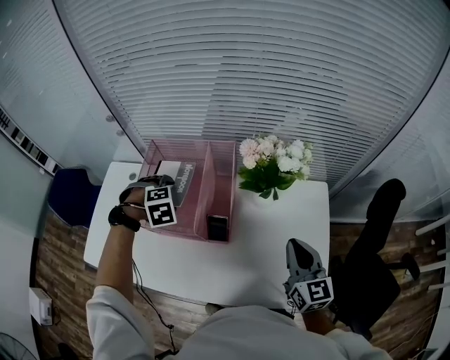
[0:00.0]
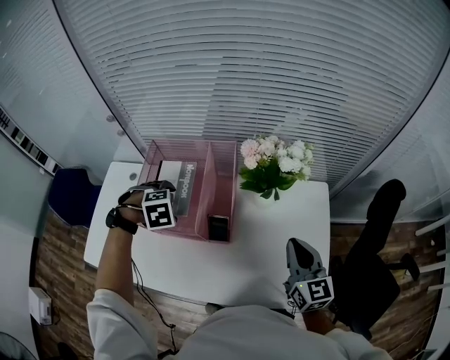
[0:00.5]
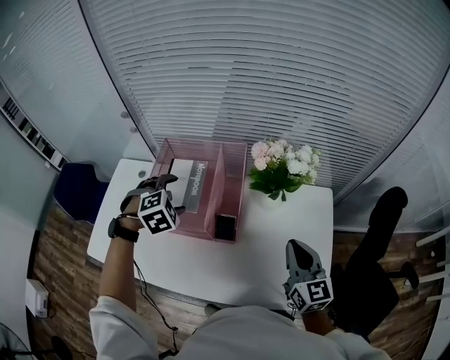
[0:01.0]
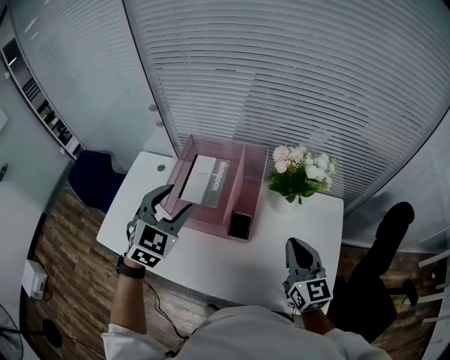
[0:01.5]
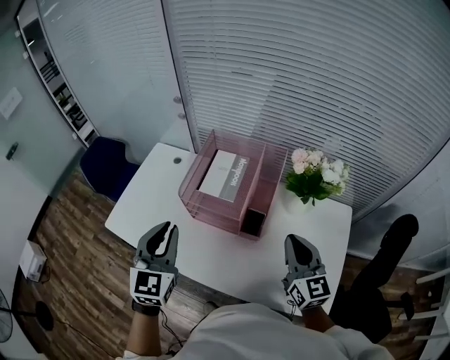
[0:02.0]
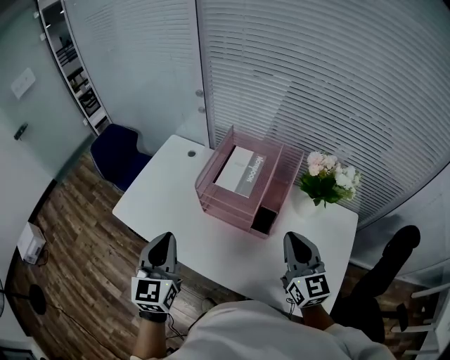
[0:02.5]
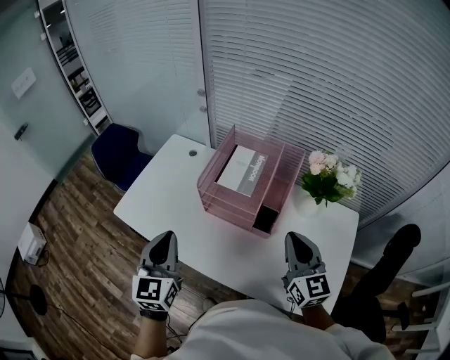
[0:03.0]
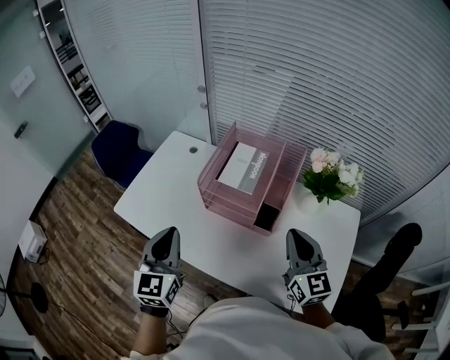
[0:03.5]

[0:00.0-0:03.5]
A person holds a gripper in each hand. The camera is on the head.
0:00.0 to 0:02.0: The left gripper shifts by some 30 cm, angles its fingers upward, by approximately 60 degrees, and closes its fingers. Meanwhile the right gripper changes place by approximately 15 cm.
0:02.0 to 0:03.5: The two grippers go roughly 5 cm to the left.

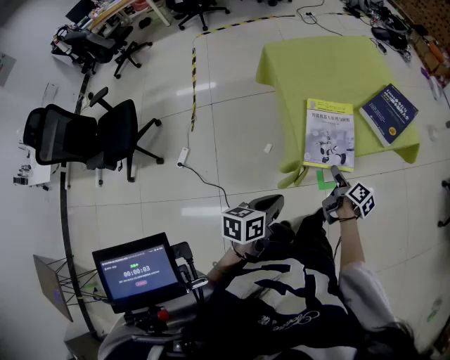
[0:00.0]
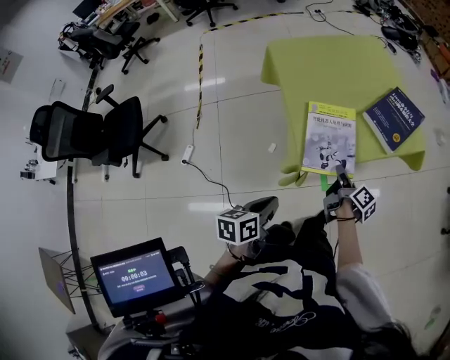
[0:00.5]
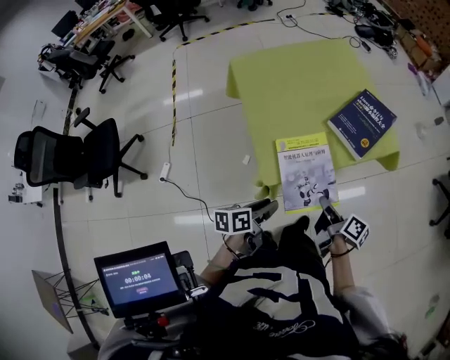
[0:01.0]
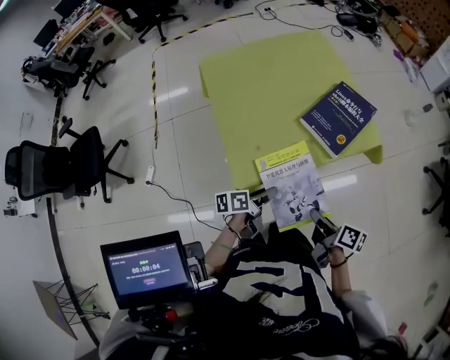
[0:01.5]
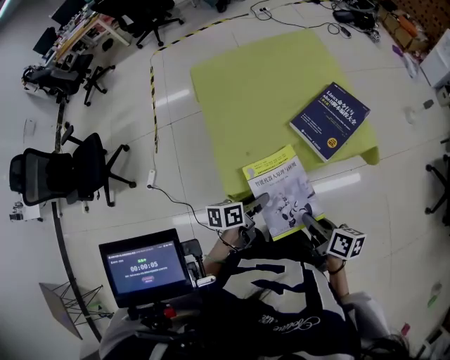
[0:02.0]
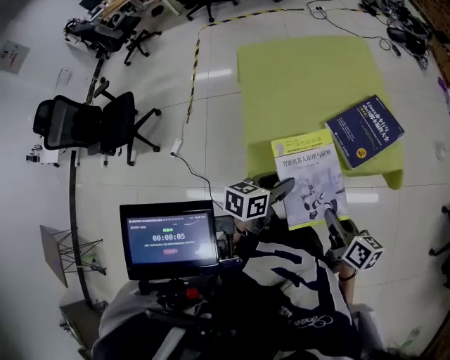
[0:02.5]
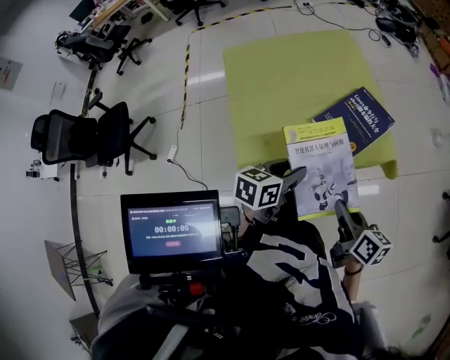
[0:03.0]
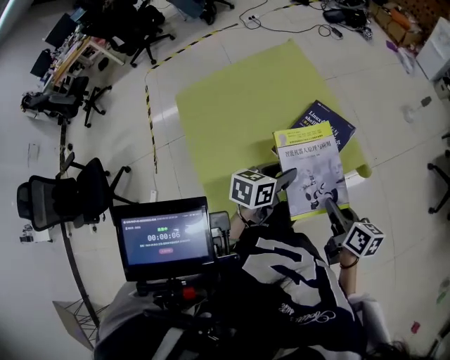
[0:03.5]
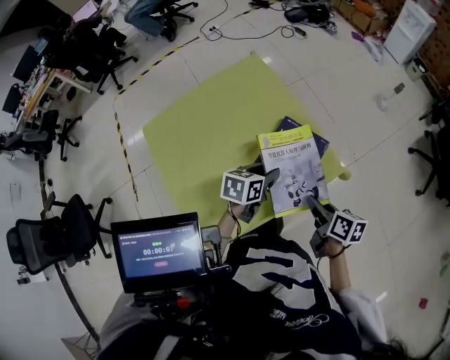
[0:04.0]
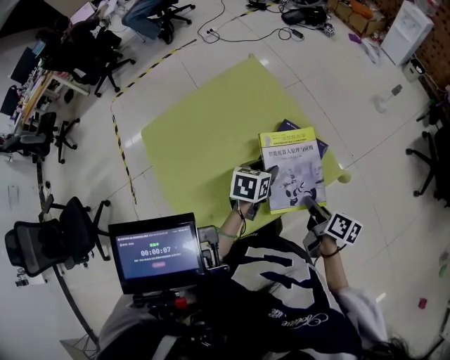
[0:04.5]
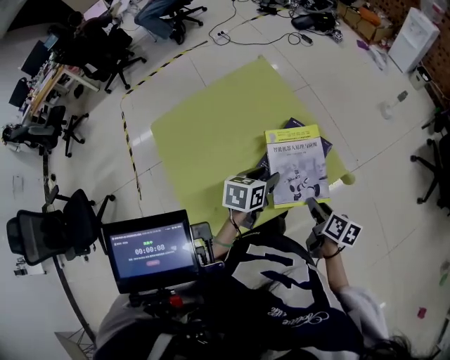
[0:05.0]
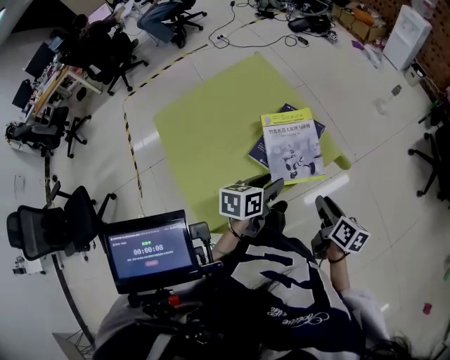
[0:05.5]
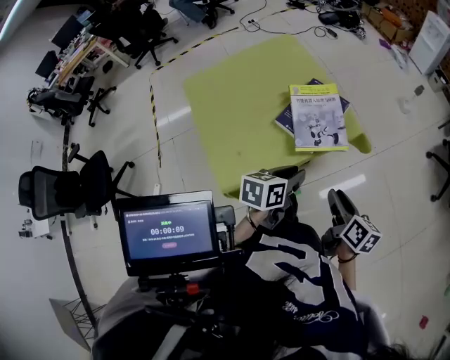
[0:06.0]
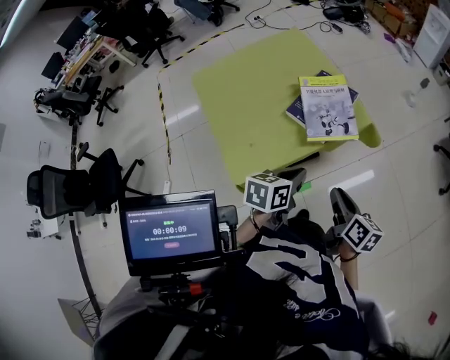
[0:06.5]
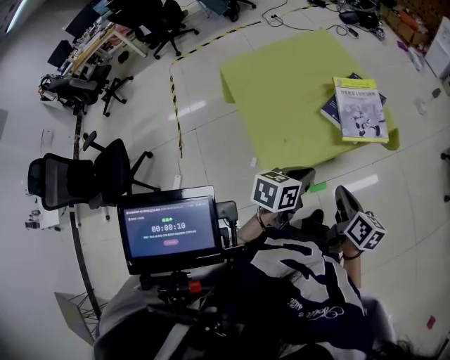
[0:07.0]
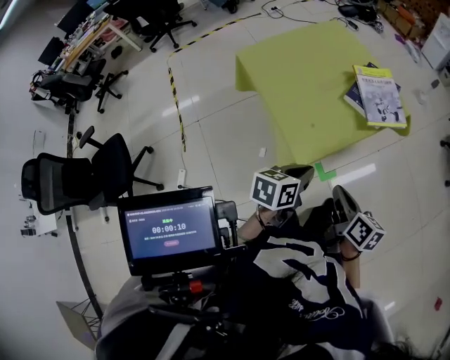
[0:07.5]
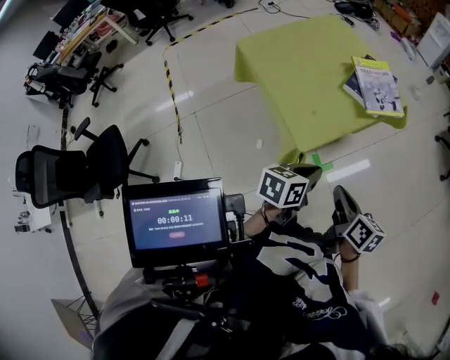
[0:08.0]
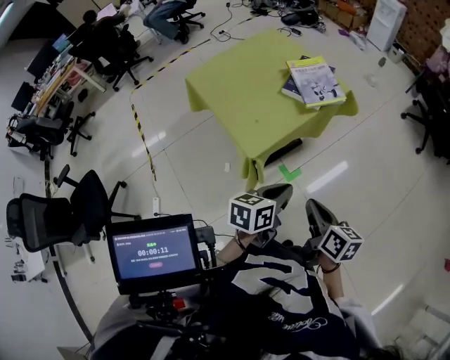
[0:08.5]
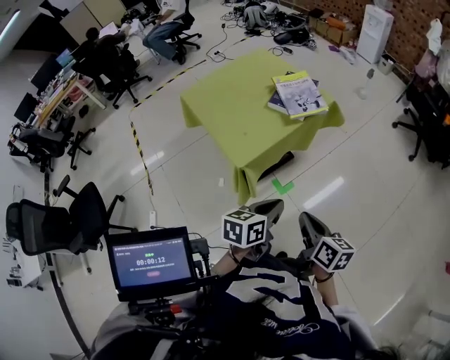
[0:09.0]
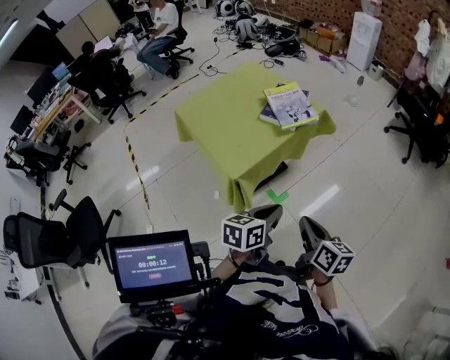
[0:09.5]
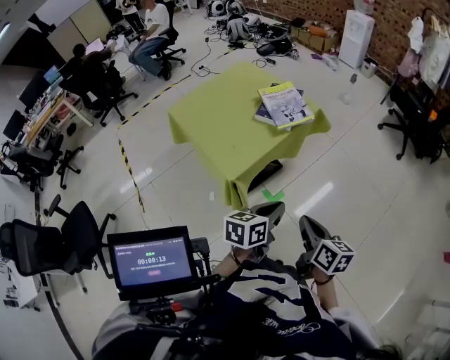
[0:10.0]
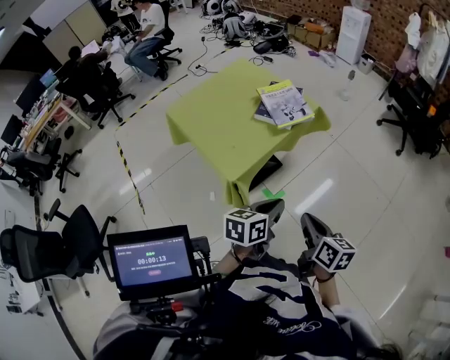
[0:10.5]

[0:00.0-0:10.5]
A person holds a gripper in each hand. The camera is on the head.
0:00.0 to 0:02.0: The left gripper heads to the right, forward and downward, covering approximately 20 cm, and opens its fingers; the right gripper moves to the right and upward, some 15 cm, rotates roughly 30 degrees, and closes its fingers.
0:02.0 to 0:04.0: The two grippers go roughly 25 cm forward and to the right. The right gripper turns by about 20 degrees; the left gripper rotates some 40 degrees.
0:04.0 to 0:06.5: The grippers both shift backward by roughly 20 cm. The left gripper closes its fingers.
0:06.5 to 0:08.5: The left gripper shifts roughly 20 cm backward, while the right gripper goes roughly 25 cm backward and to the left.
0:08.5 to 0:10.5: The right gripper goes roughly 5 cm to the right, while the left gripper moves approximately 5 cm.

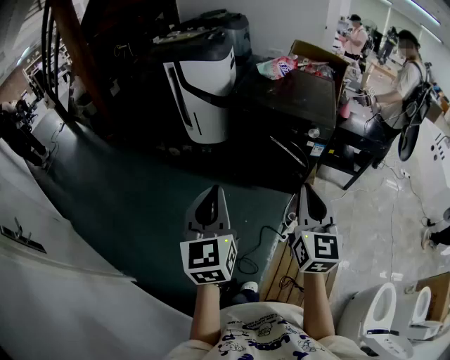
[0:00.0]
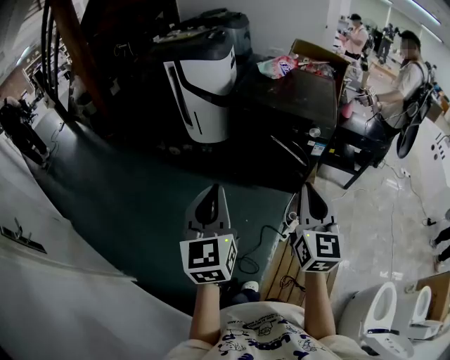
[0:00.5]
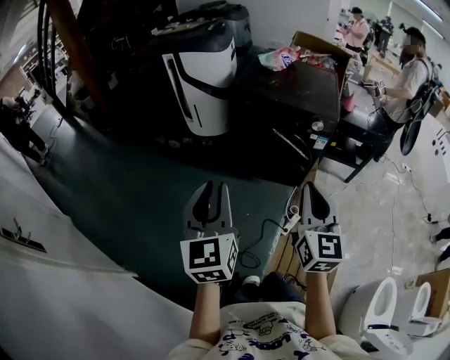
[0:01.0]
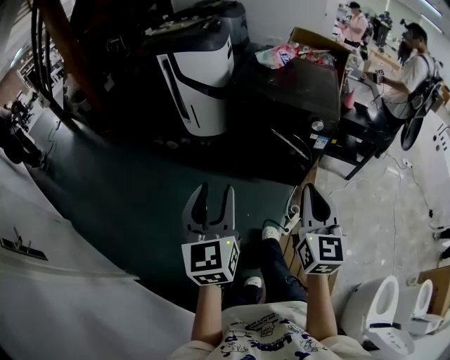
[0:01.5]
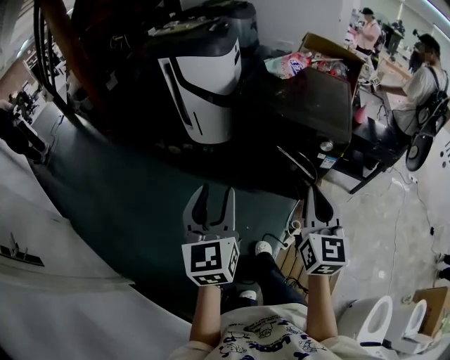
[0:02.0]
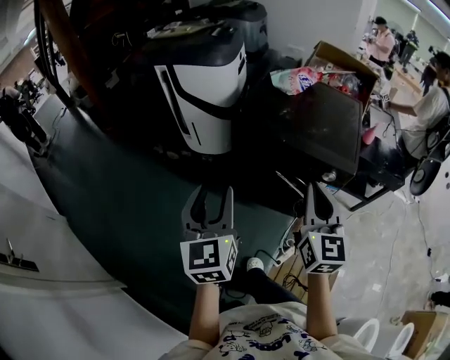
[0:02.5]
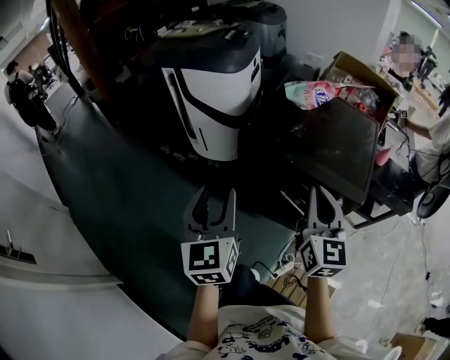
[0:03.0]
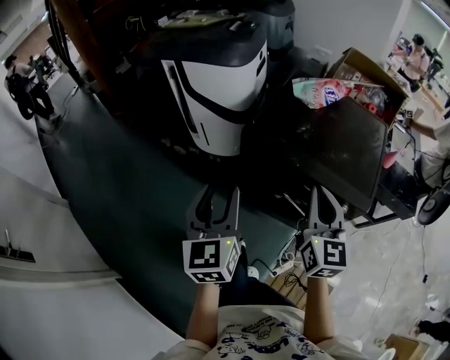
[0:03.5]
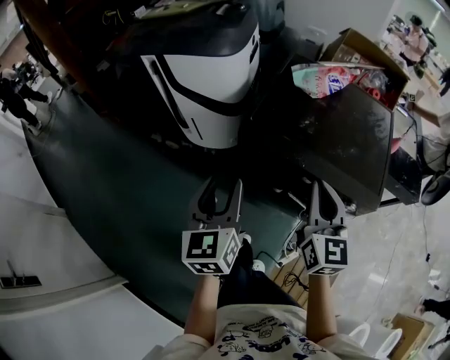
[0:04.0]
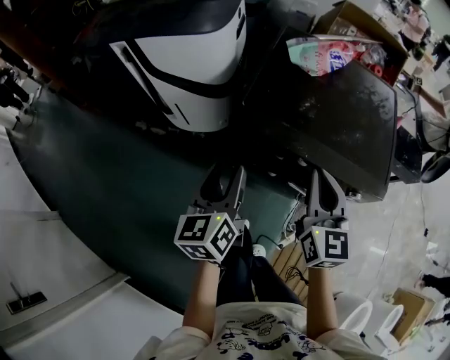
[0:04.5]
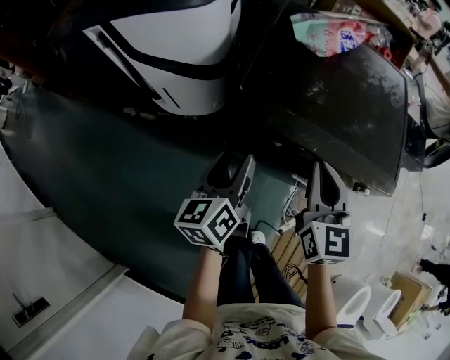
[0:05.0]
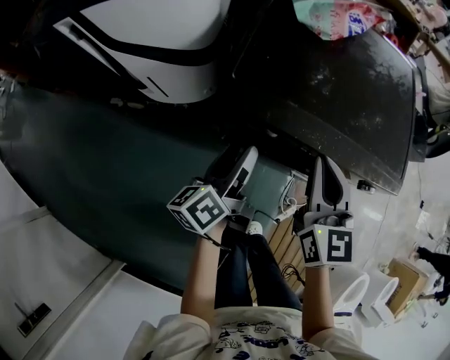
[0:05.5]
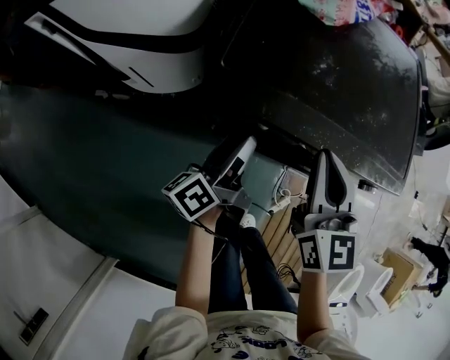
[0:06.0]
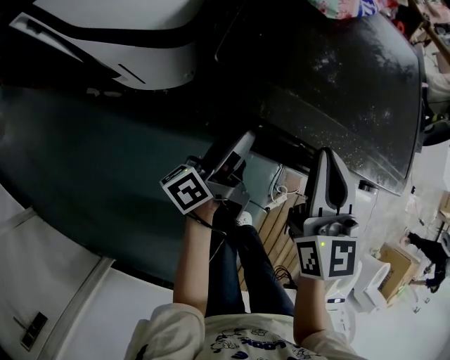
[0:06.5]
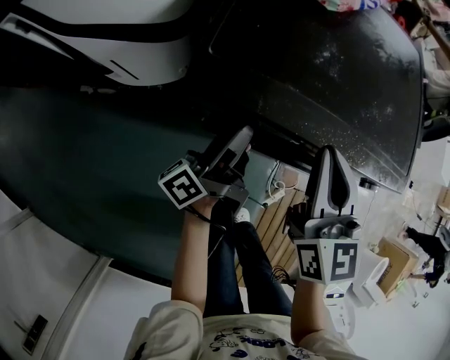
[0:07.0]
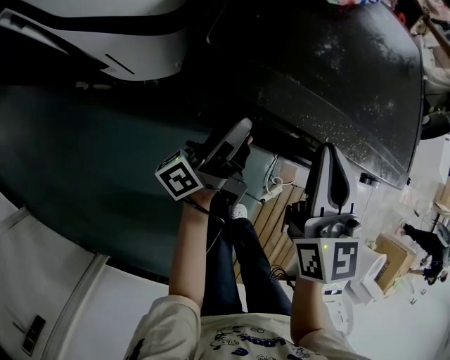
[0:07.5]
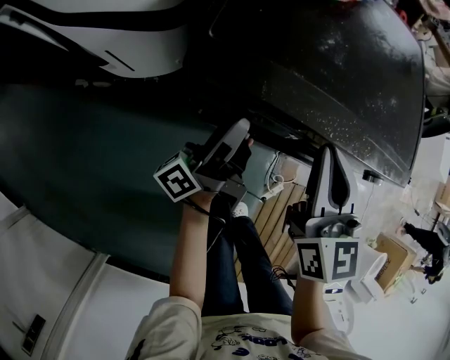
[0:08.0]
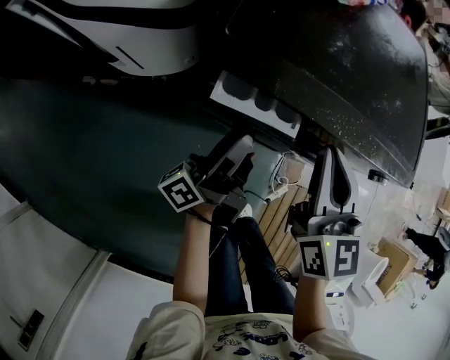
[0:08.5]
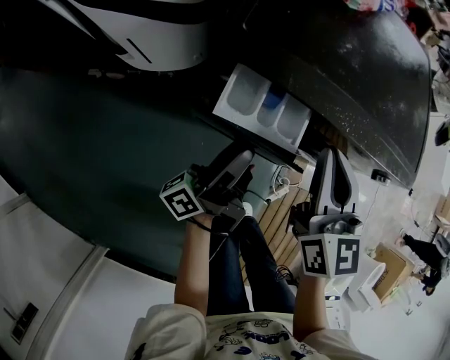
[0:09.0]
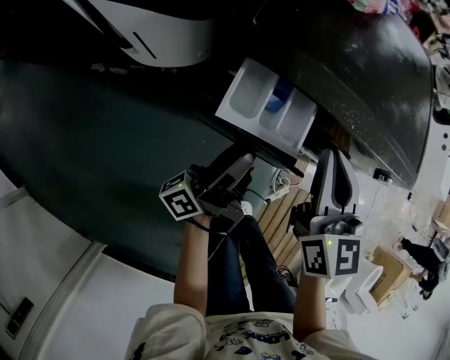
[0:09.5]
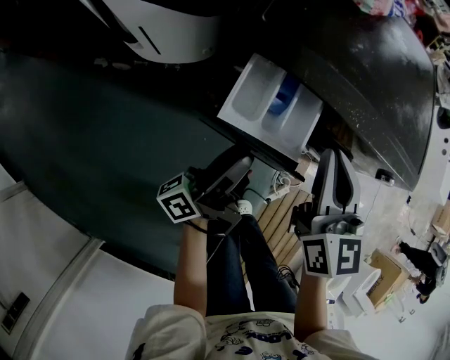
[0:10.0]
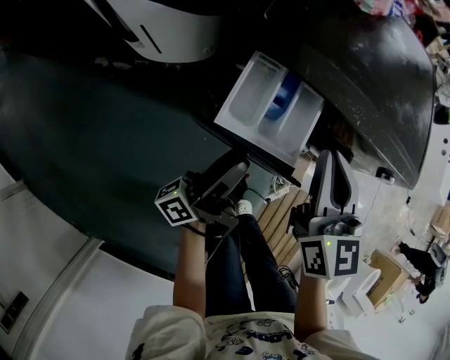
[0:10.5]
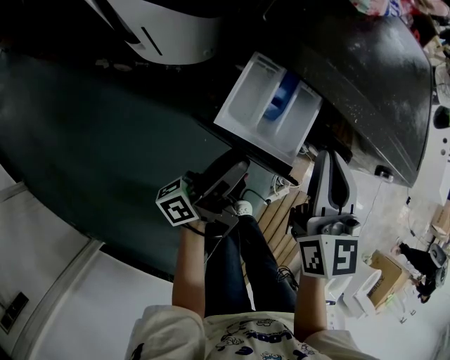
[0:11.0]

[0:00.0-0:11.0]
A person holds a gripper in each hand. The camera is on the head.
0:00.0 to 0:02.0: The grippers both shift forward by approximately 15 cm. The left gripper opens.
0:02.0 to 0:03.5: The two grippers go approximately 30 cm forward.
0:03.5 to 0:05.5: The grippers both shift downward and forward by some 30 cm. The left gripper rolls counterclockwise, seen from behind, by approximately 50 degrees.
0:05.5 to 0:07.5: The left gripper heads downward and forward, covering about 10 cm, and turns by approximately 40 degrees.
0:07.5 to 0:09.0: The left gripper shifts approximately 10 cm backward.
0:09.0 to 0:11.0: There are only small adjustments of the grippers.

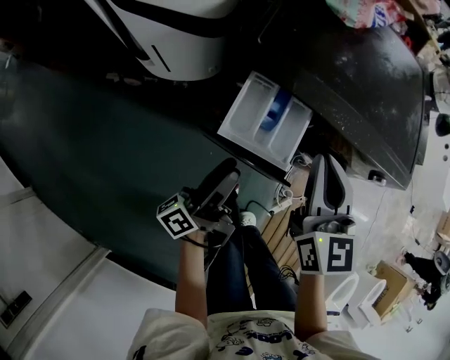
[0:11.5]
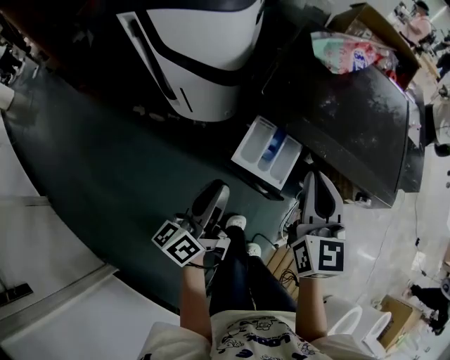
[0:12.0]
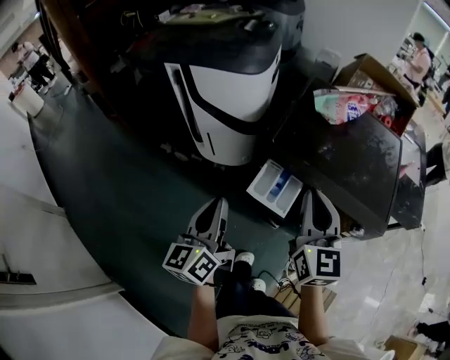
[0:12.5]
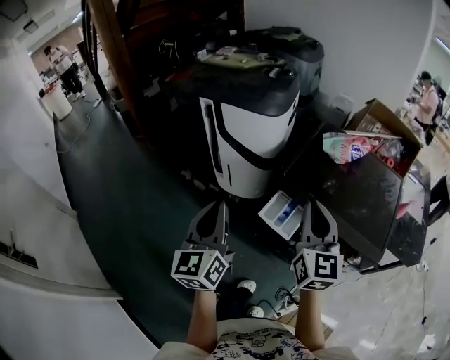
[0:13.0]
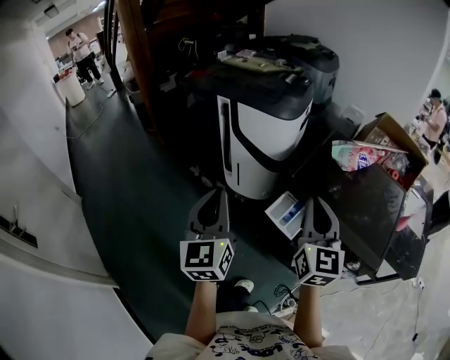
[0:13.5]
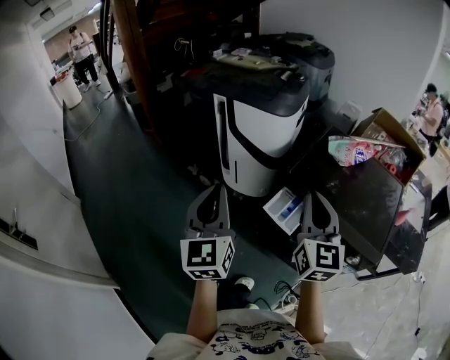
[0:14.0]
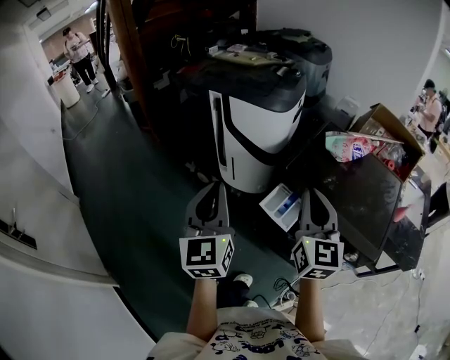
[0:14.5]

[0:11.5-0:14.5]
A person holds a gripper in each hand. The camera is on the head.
0:11.5 to 0:13.0: The two grippers go roughly 30 cm upward. The left gripper rolls clockwise, seen from behind, by approximately 70 degrees, and closes, while the right gripper rotates about 20 degrees.
0:13.0 to 0:14.5: The left gripper moves approximately 5 cm.
